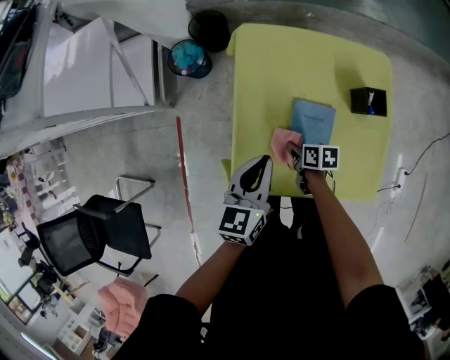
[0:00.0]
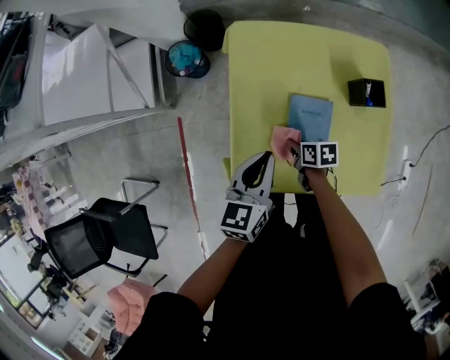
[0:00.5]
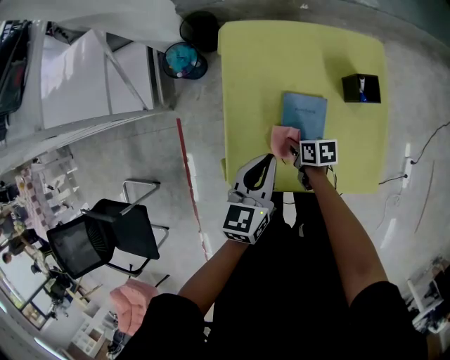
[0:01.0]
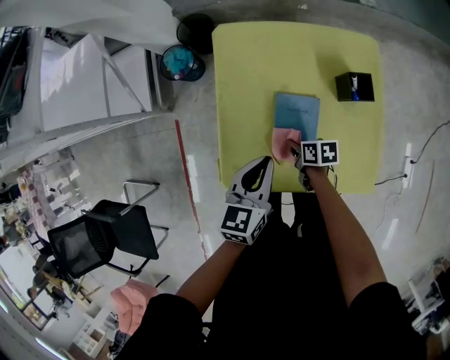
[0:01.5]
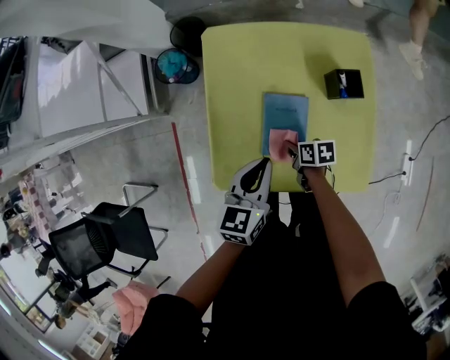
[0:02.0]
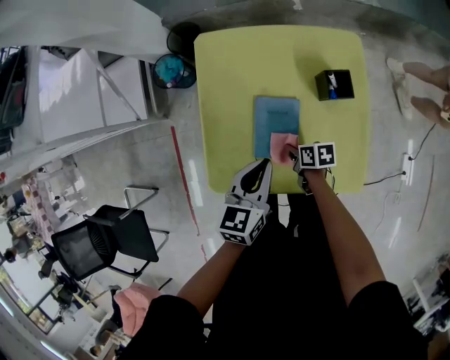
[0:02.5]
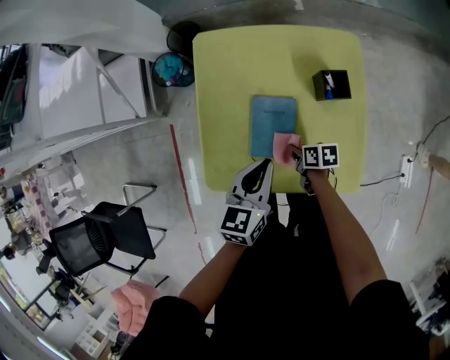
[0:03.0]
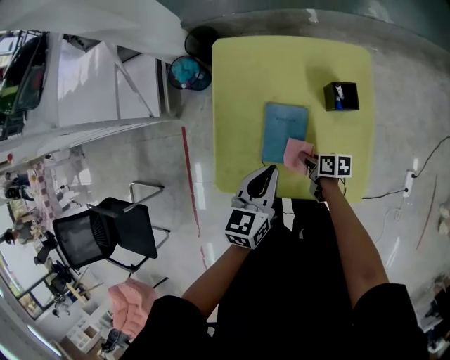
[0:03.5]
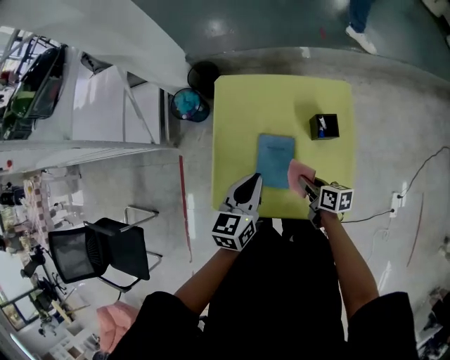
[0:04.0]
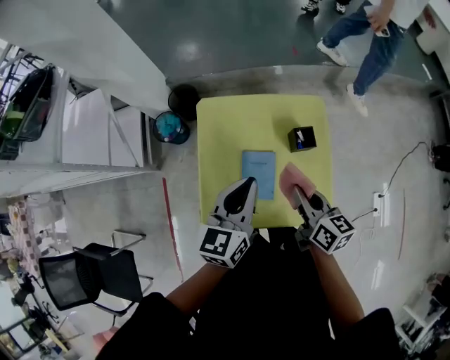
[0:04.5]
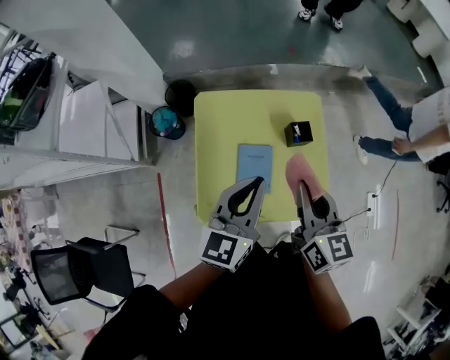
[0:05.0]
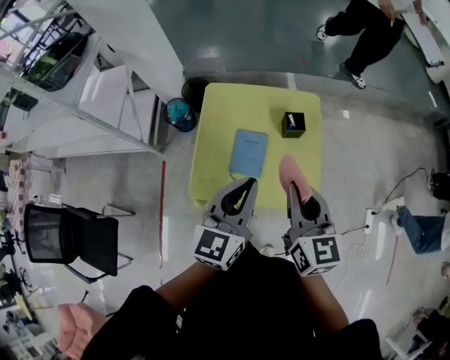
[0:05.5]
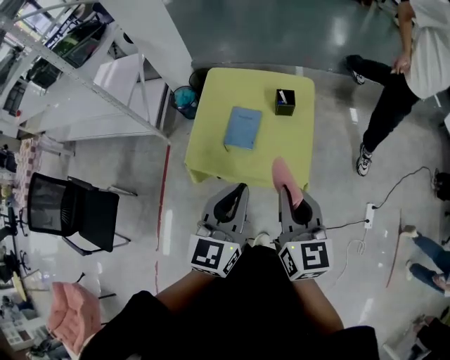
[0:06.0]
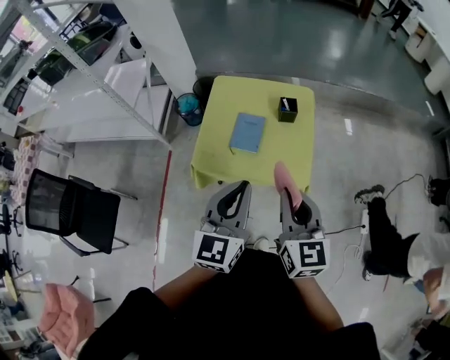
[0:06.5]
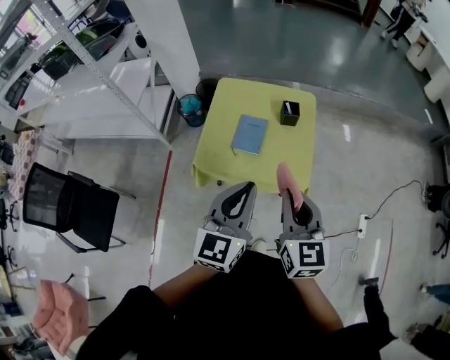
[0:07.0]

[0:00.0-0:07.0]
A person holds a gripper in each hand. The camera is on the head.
0:00.0 to 0:02.0: Both grippers move to the right, some 10 cm.
0:02.0 to 0:03.5: The right gripper heads to the right, covering about 5 cm.
0:03.5 to 0:05.0: The left gripper is displaced upward by approximately 20 cm, and rotates some 20 degrees. Meanwhile the right gripper shifts some 40 cm upward, and changes its angle by some 60 degrees.
0:05.0 to 0:07.0: The two grippers go some 35 cm backward.

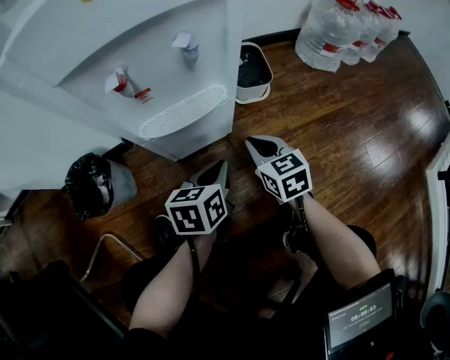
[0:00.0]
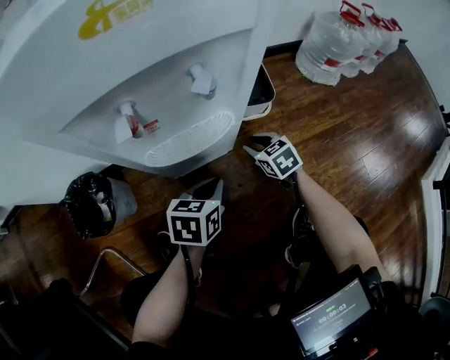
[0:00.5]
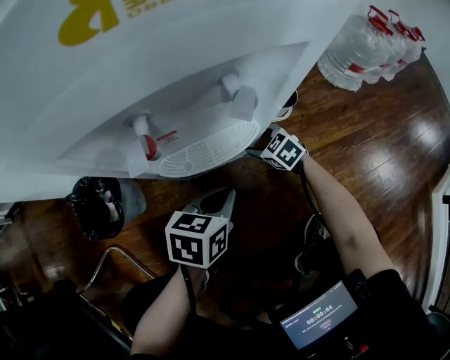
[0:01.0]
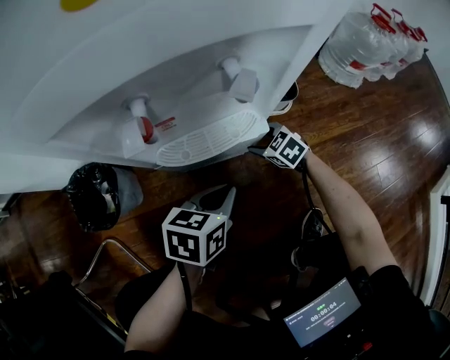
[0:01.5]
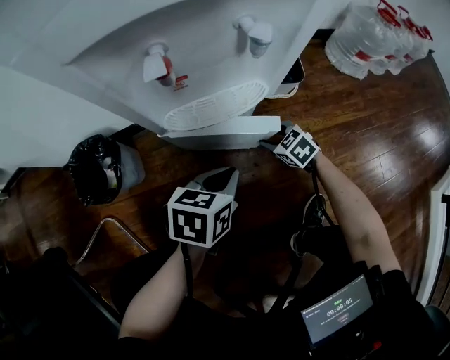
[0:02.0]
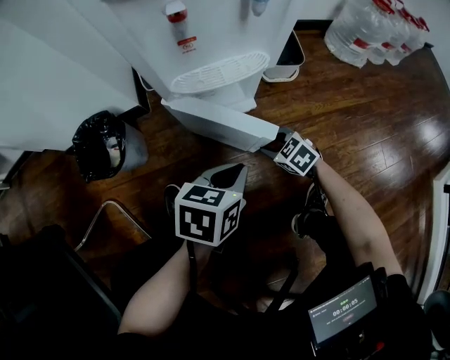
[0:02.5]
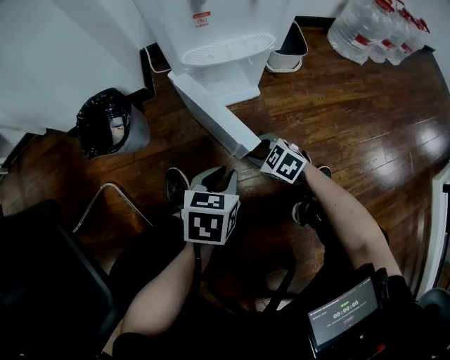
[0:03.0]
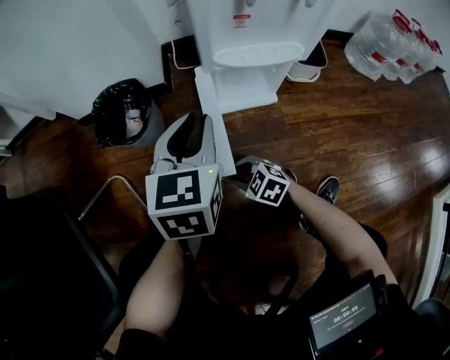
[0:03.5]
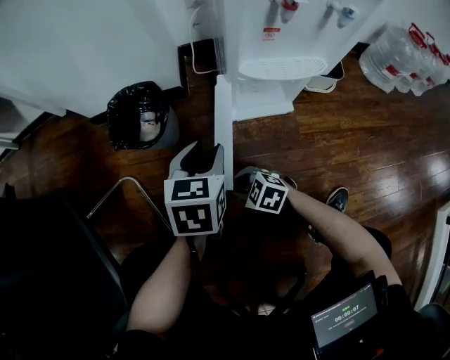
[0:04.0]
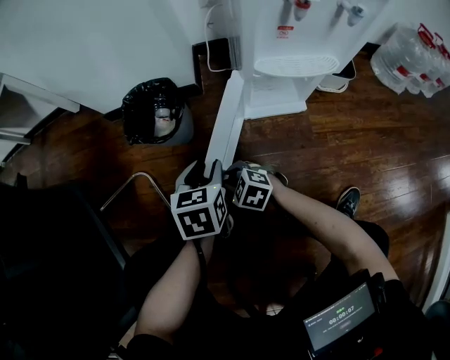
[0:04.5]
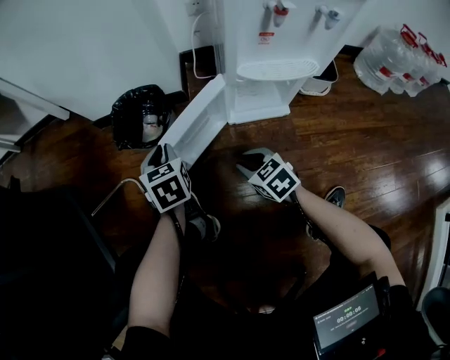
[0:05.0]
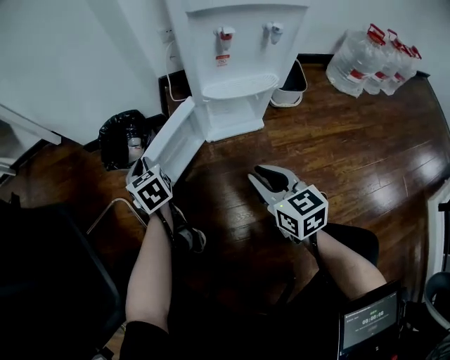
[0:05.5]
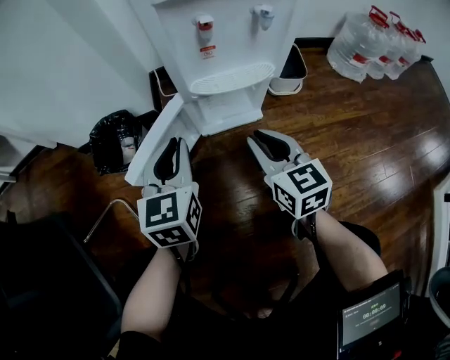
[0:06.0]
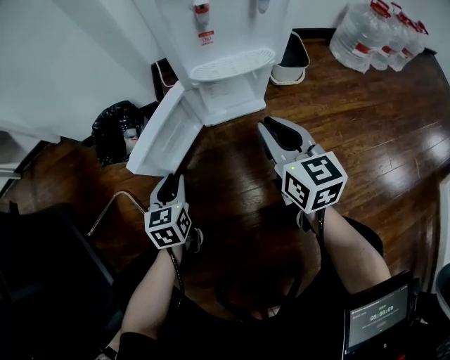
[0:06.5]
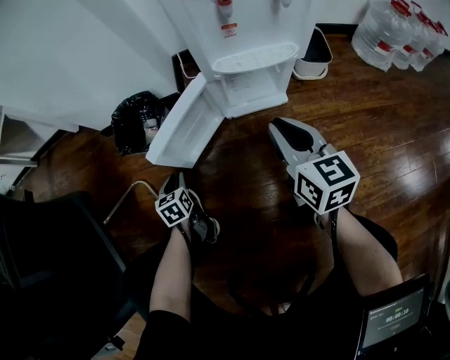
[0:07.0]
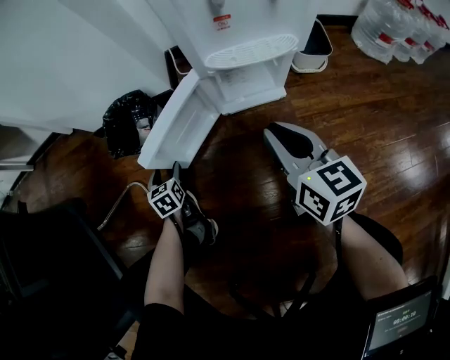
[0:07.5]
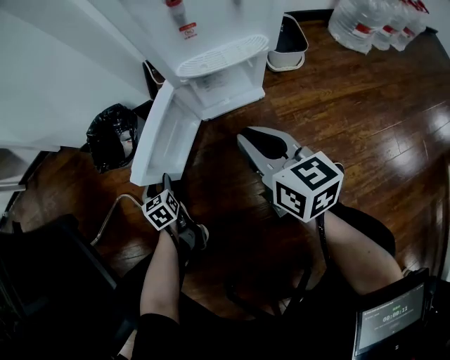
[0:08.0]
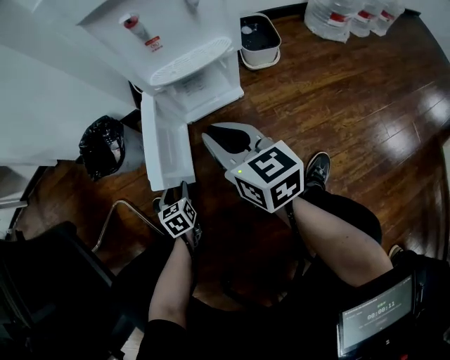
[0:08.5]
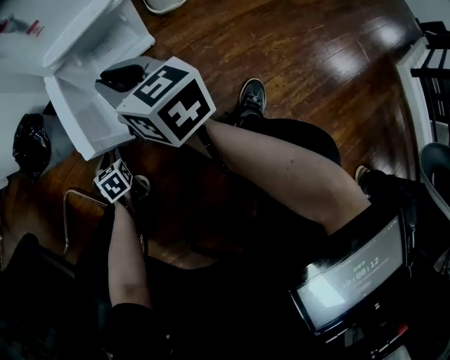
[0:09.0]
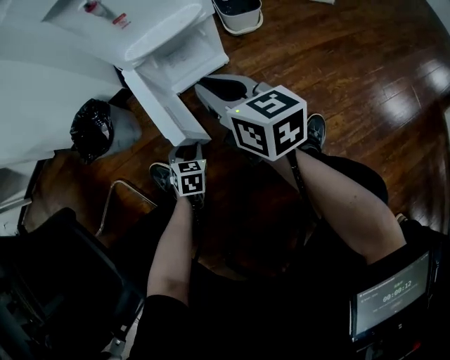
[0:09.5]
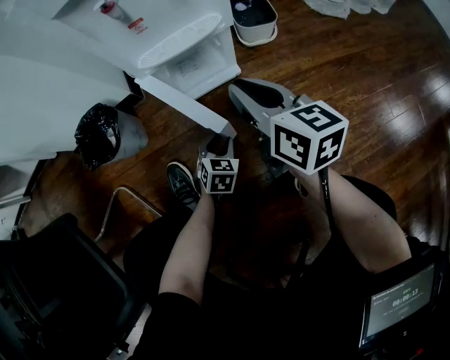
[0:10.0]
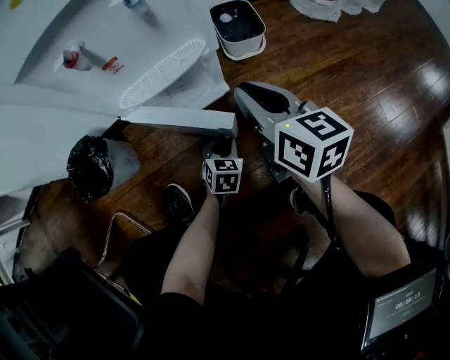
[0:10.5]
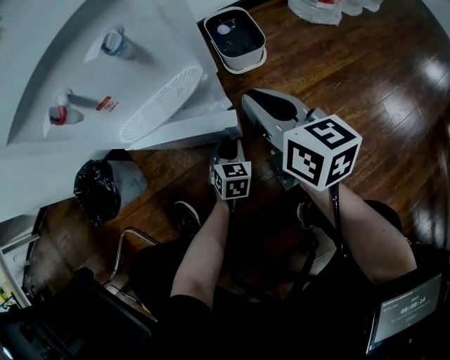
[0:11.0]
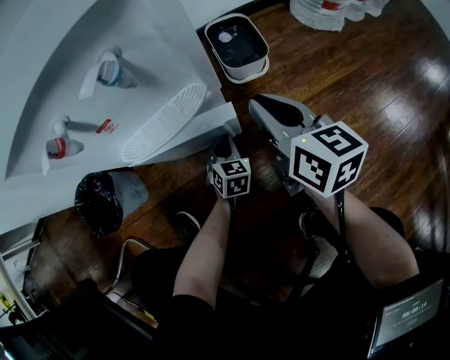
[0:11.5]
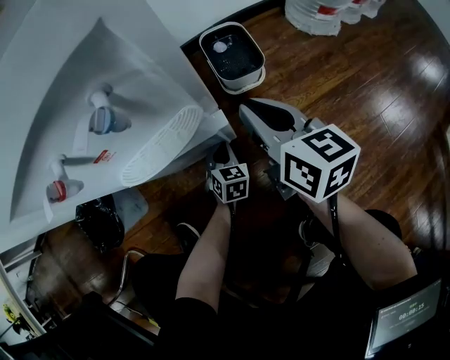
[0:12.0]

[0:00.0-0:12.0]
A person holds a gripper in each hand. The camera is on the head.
0:00.0 to 0:02.0: The right gripper goes roughly 15 cm downward, rotates some 40 degrees, and opens up.
0:02.0 to 0:04.0: The right gripper shifts by approximately 35 cm, and swivels about 30 degrees; the left gripper moves approximately 10 cm upward and comes back, changes its angle by approximately 30 degrees, and opens its fingers.
0:04.0 to 0:06.0: The left gripper moves upward, roughly 10 cm, swivels some 20 degrees, and closes; the right gripper travels upward by roughly 25 cm, and tips its fingers upward by roughly 30 degrees.
0:06.0 to 0:08.0: The left gripper heads downward and to the left, covering some 35 cm, changes its angle by about 30 degrees, and opens.
0:08.0 to 0:10.0: The right gripper shifts some 10 cm to the right; the left gripper goes roughly 30 cm to the right, and changes its angle by approximately 40 degrees.
0:10.0 to 0:12.0: The two grippers go approximately 20 cm forward and to the right. The left gripper closes up.

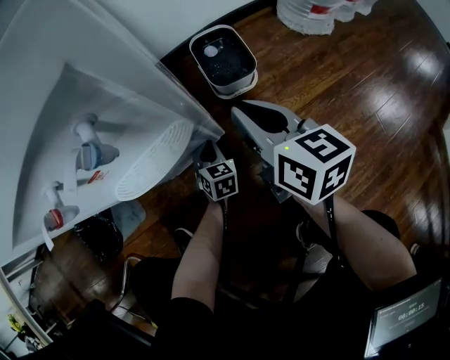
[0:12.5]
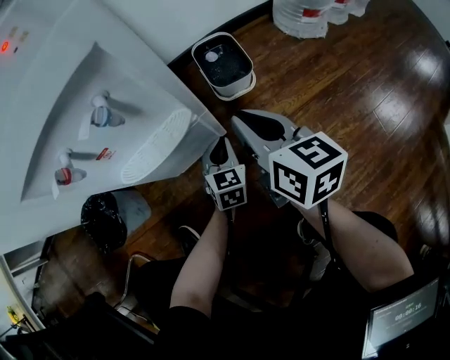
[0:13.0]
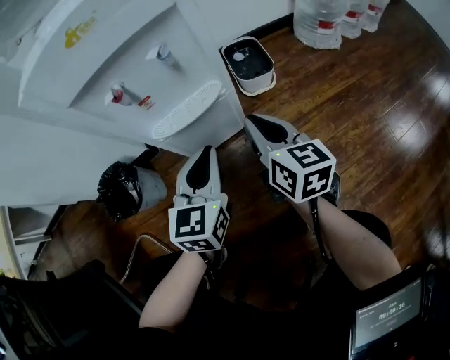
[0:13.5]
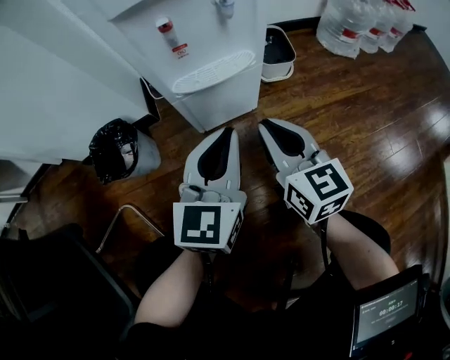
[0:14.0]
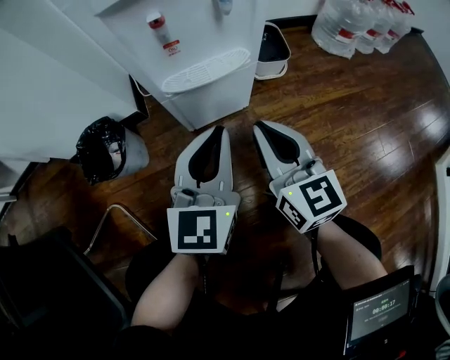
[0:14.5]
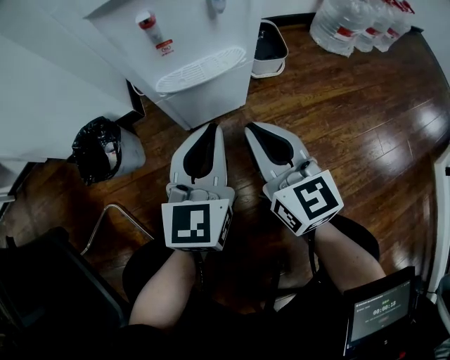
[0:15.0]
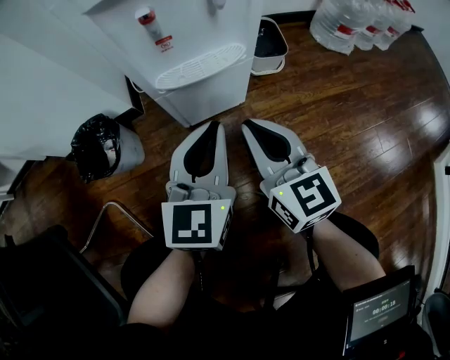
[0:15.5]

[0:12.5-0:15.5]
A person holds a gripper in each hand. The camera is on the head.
0:12.5 to 0:14.0: The right gripper travels backward and to the left by some 25 cm, and swivels approximately 20 degrees, while the left gripper shifts some 40 cm upward and backward, and angles its fingers upward, by roughly 40 degrees.
0:14.0 to 0:15.5: The grippers make only small movements.

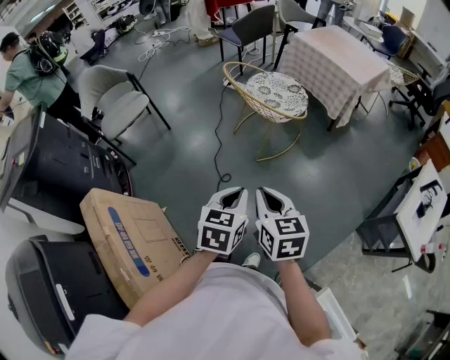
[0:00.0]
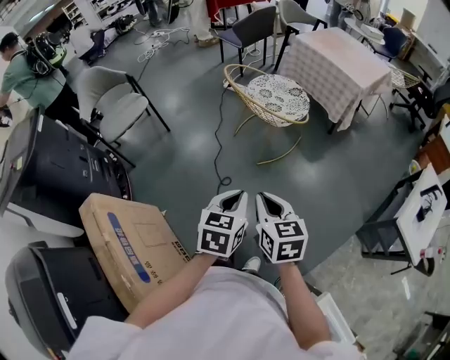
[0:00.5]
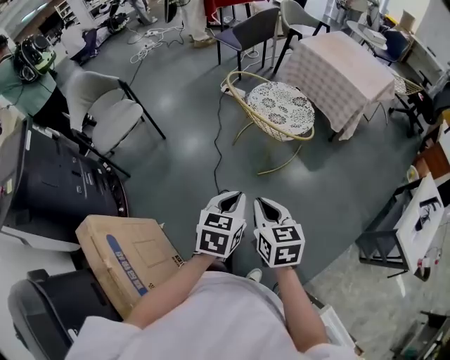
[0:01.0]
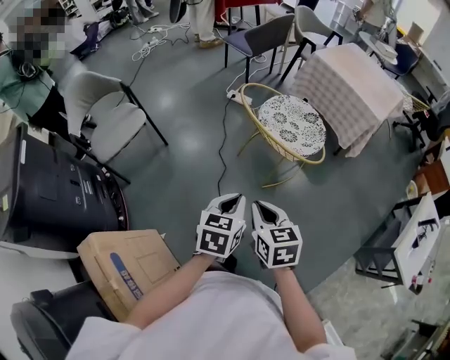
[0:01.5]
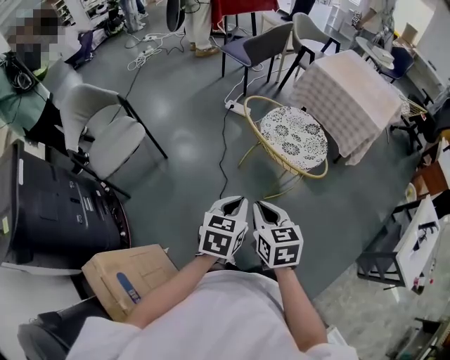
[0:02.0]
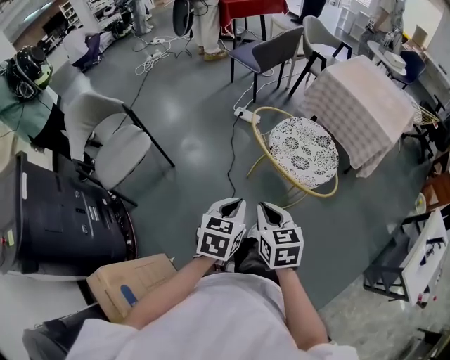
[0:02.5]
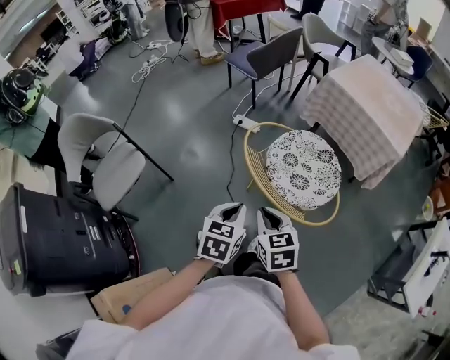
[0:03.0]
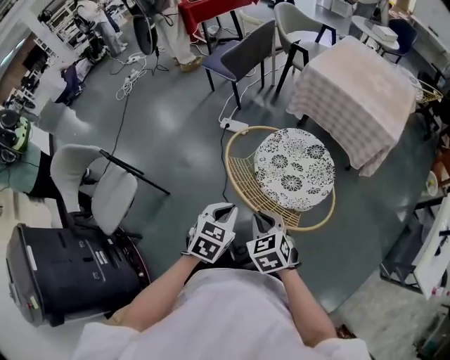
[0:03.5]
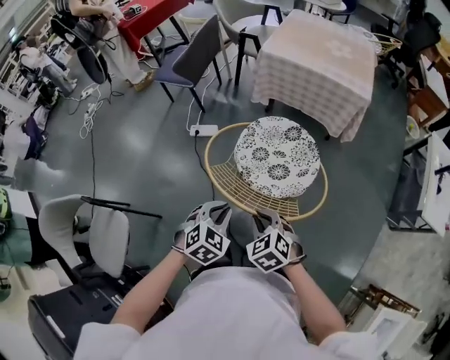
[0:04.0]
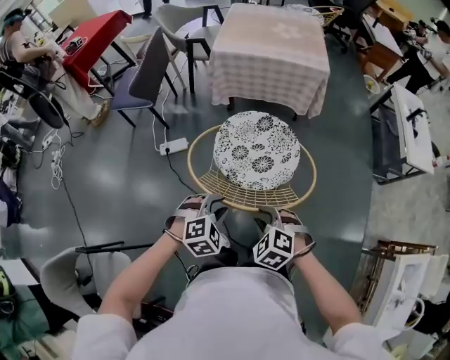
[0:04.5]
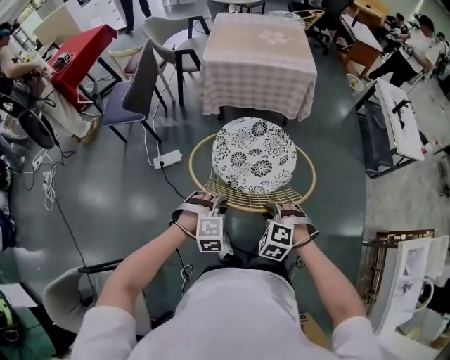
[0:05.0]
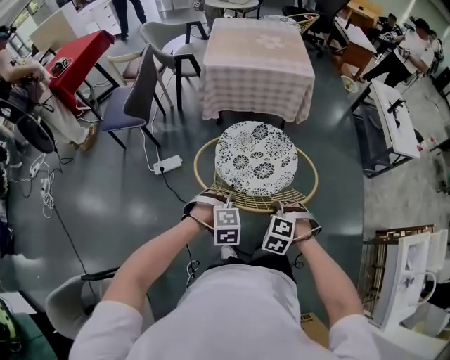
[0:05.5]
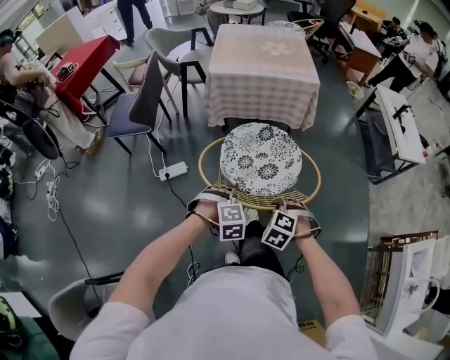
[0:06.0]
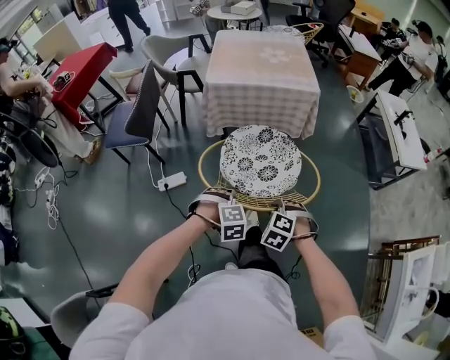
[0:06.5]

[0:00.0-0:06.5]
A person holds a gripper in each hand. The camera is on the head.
0:00.0 to 0:02.0: Both grippers move forward and to the left, approximately 30 cm.
0:02.0 to 0:04.5: The right gripper moves approximately 30 cm, rotates roughly 40 degrees, and opens its fingers. Meanwhile the left gripper moves roughly 35 cm, twists roughly 90 degrees clockwise, seen from behind, and opens up.
0:04.5 to 0:06.5: The two grippers go approximately 10 cm forward. The left gripper rotates about 30 degrees.
